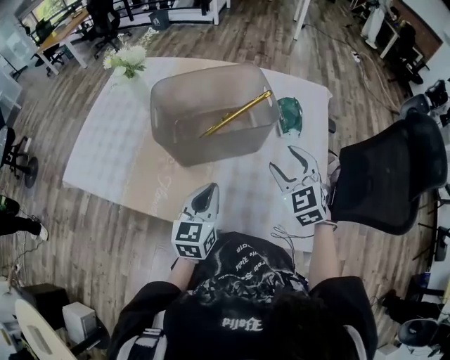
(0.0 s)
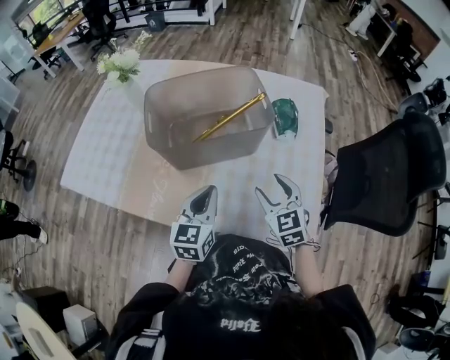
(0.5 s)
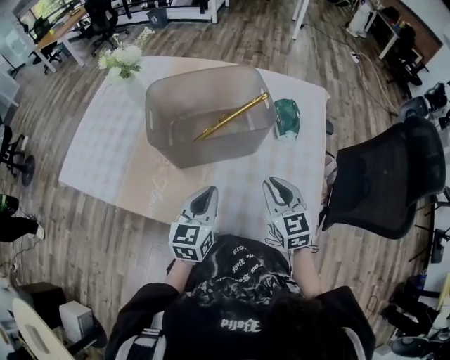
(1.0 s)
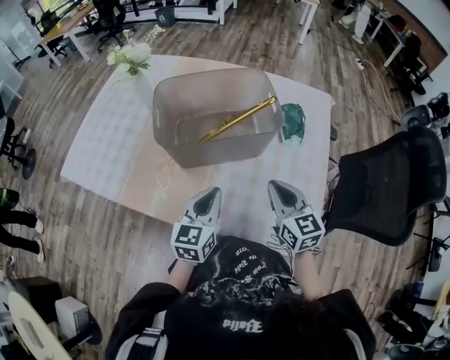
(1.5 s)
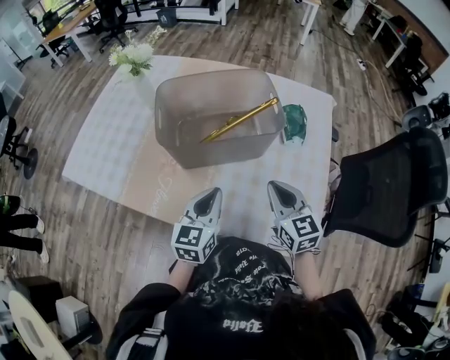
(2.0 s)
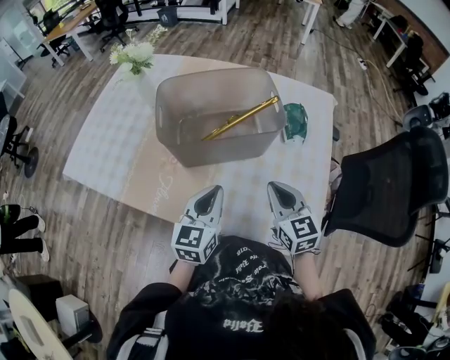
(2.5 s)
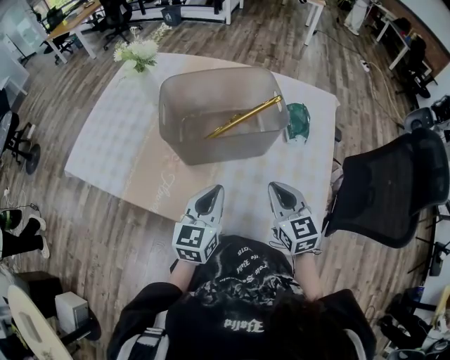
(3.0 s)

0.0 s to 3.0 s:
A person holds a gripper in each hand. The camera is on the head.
0.0 to 1.5 s: The right gripper shifts by some 5 cm, rotates roughly 30 degrees, and closes its fingers.
1.5 to 3.0 s: The grippers make only small movements.

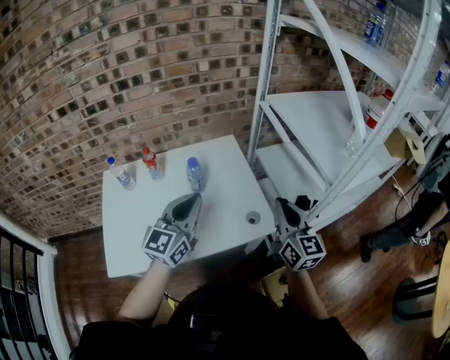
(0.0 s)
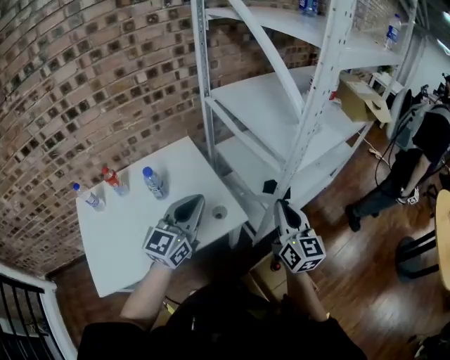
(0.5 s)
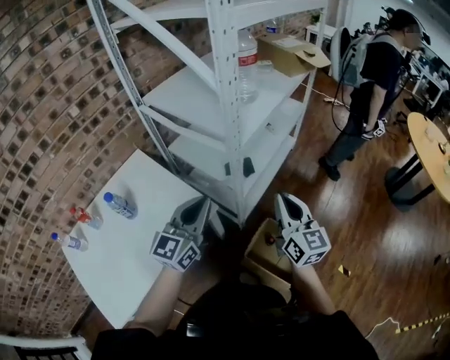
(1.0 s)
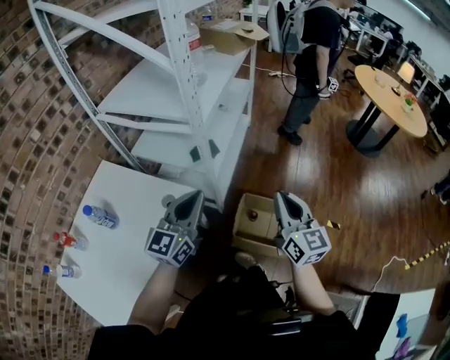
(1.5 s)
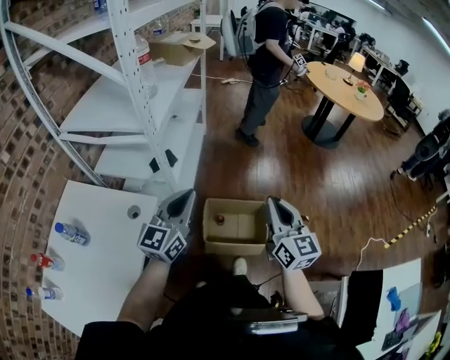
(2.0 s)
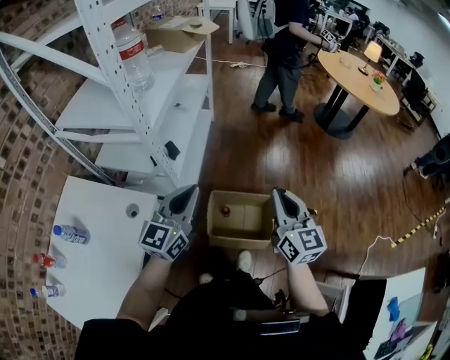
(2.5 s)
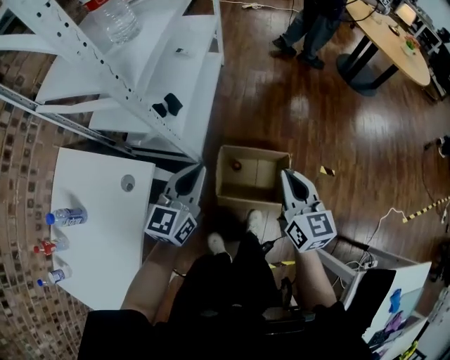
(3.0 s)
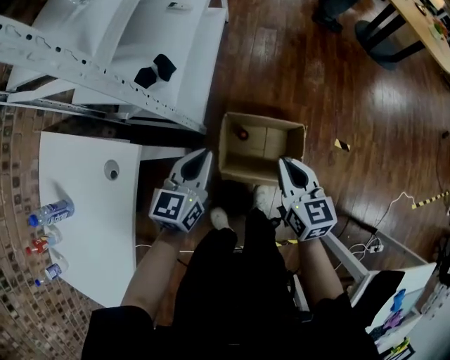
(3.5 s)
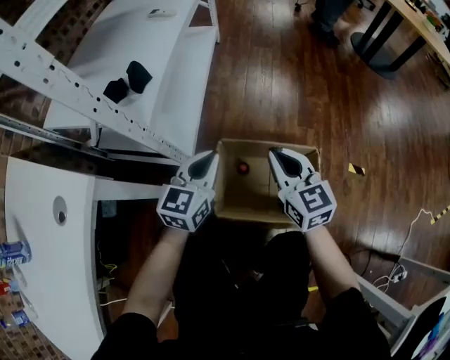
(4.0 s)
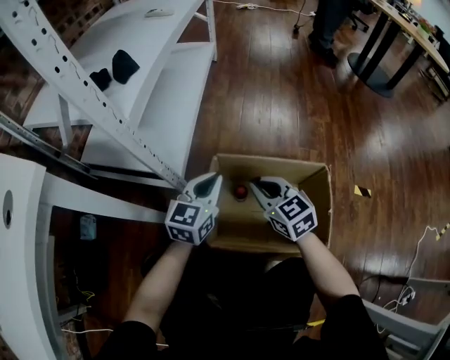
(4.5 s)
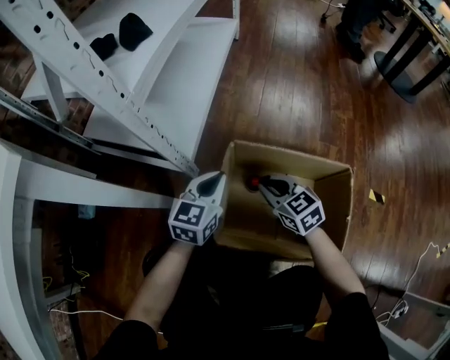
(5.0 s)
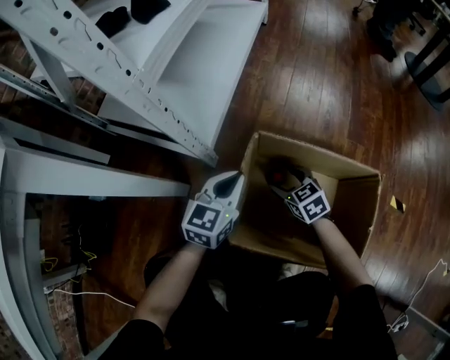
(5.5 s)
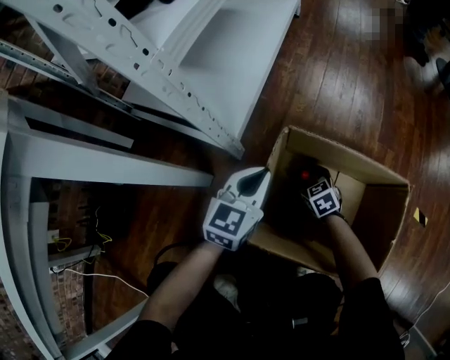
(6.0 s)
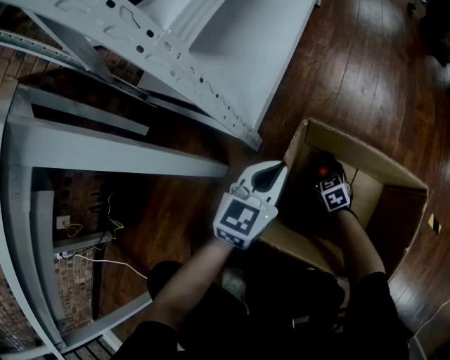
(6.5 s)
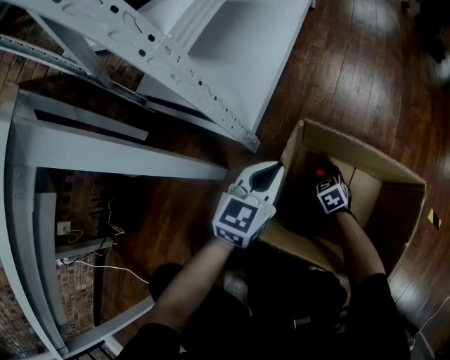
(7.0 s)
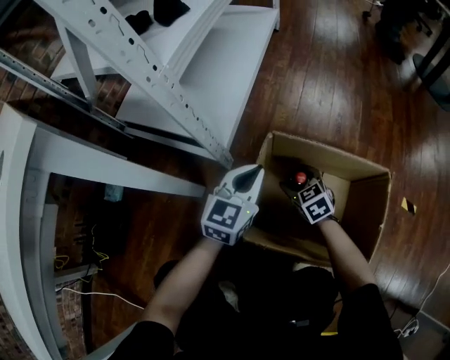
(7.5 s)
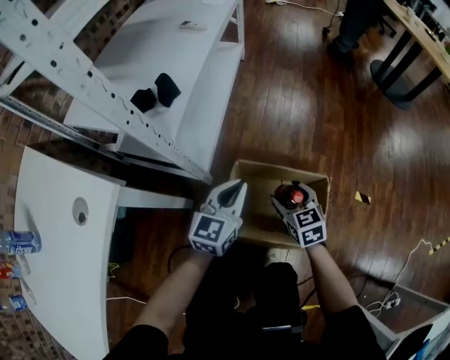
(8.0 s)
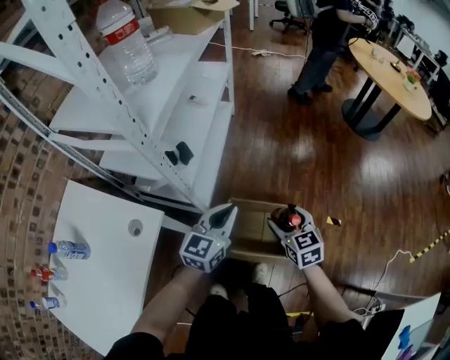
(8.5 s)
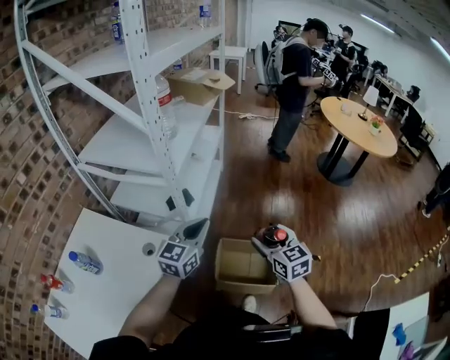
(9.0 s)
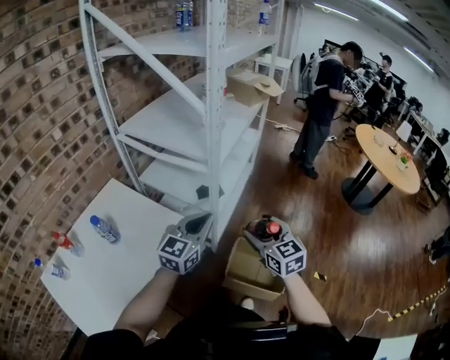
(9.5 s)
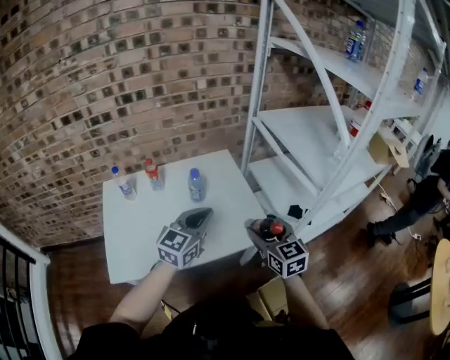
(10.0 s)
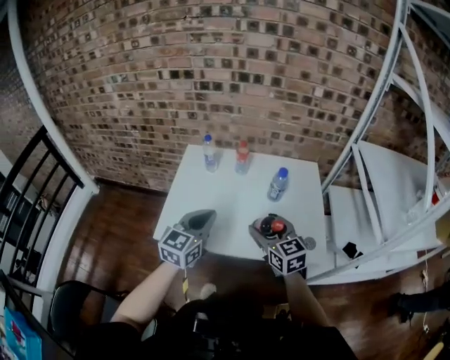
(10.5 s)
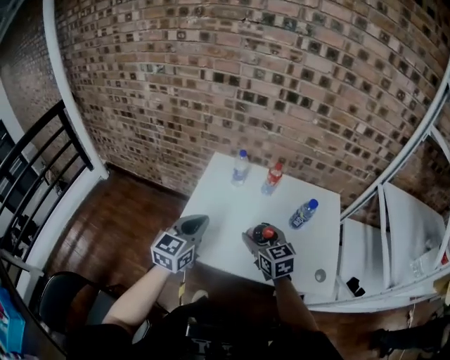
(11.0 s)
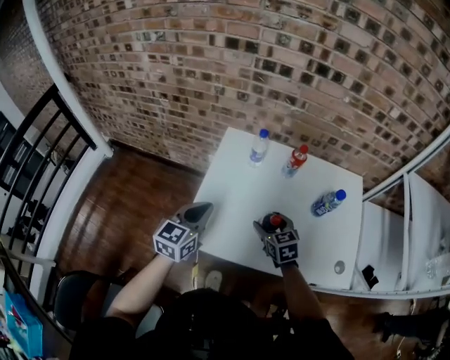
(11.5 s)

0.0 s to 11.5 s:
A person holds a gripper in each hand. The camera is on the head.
0.0 to 2.0 s: The left gripper changes place by about 35 cm, and turns by some 60 degrees. Meanwhile the right gripper ends up about 40 cm from where it was, and turns by some 60 degrees.
2.0 to 4.0 s: The two grippers go about 50 cm downward and forward. The left gripper rotates roughly 20 degrees, while the right gripper turns by roughly 20 degrees.
4.0 to 6.0 s: The right gripper travels downward by approximately 50 cm, tips its fingers downward by some 30 degrees, and opens. The left gripper moves downward, some 25 cm.
6.0 to 7.5 s: The right gripper heads upward, covering roughly 10 cm.
7.5 to 9.5 s: Both grippers travel together upward, roughly 80 cm. The right gripper rotates roughly 30 degrees.
9.5 to 11.5 s: Both grippers are carried about 70 cm. The left gripper swivels roughly 80 degrees, while the right gripper changes its angle by roughly 80 degrees.

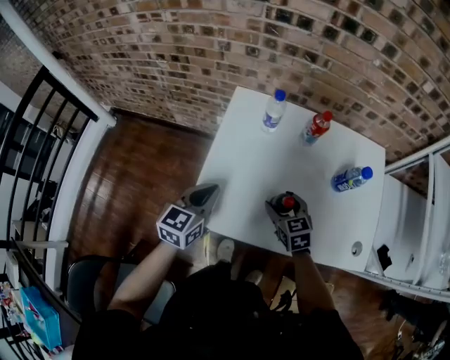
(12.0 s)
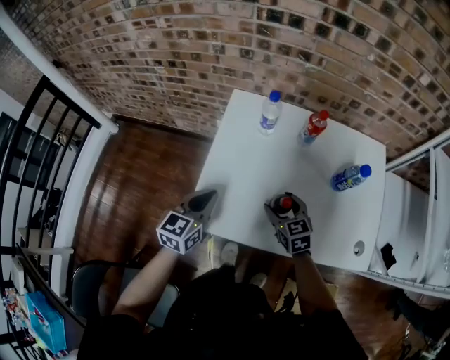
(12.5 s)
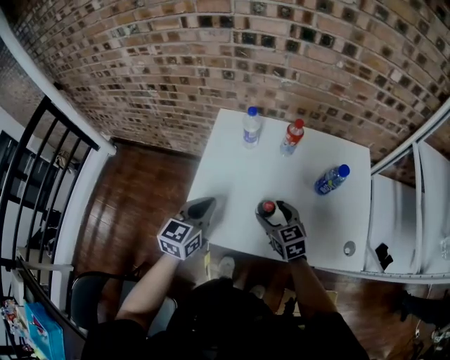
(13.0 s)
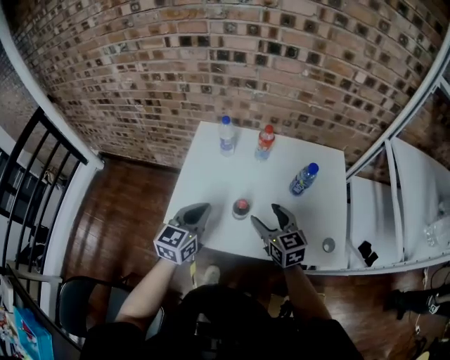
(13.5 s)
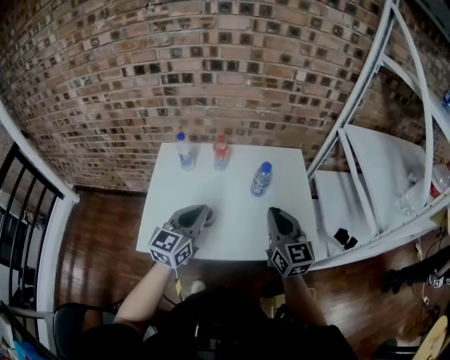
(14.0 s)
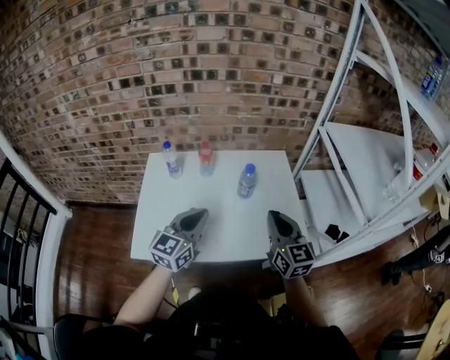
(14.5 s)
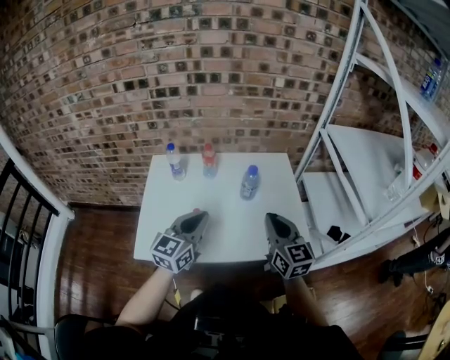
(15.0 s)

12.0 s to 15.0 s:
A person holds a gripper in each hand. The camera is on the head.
12.0 to 13.5 s: The left gripper heads to the right, upward and backward, covering some 15 cm. The right gripper goes roughly 15 cm upward, to the right and backward.
13.5 to 15.0 s: Both grippers travel together to the right and upward, approximately 20 cm. The right gripper swivels approximately 30 degrees, and closes its fingers.

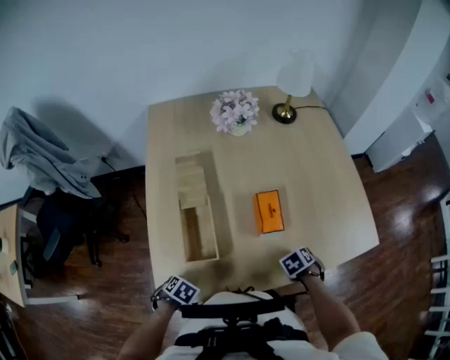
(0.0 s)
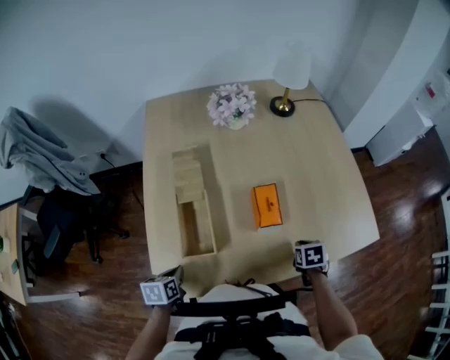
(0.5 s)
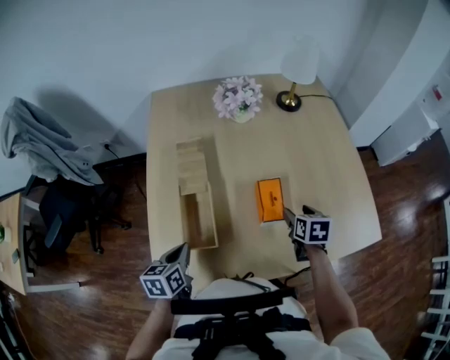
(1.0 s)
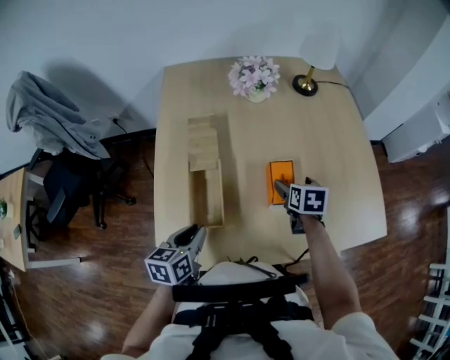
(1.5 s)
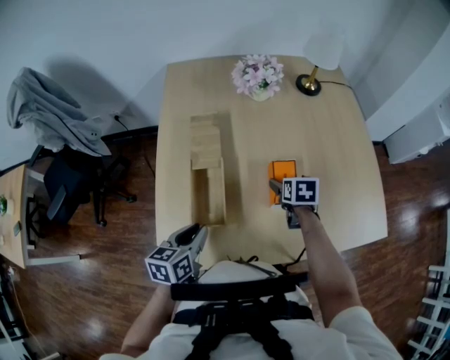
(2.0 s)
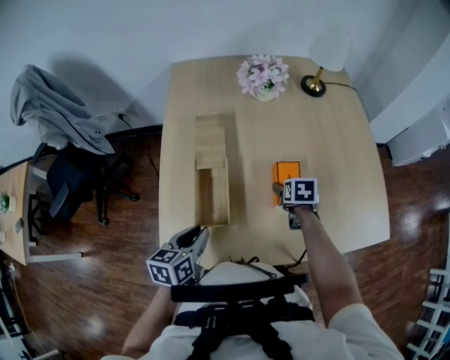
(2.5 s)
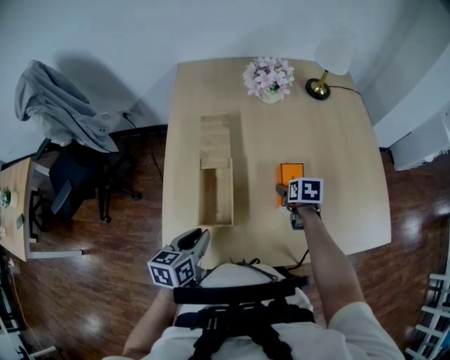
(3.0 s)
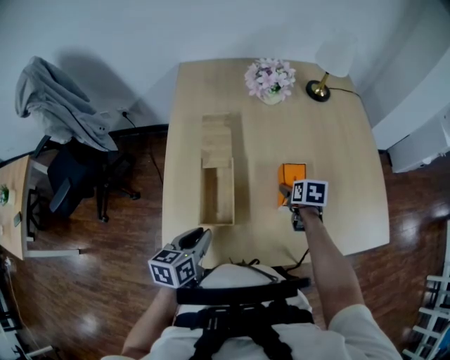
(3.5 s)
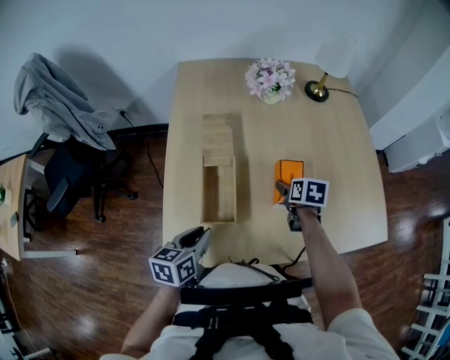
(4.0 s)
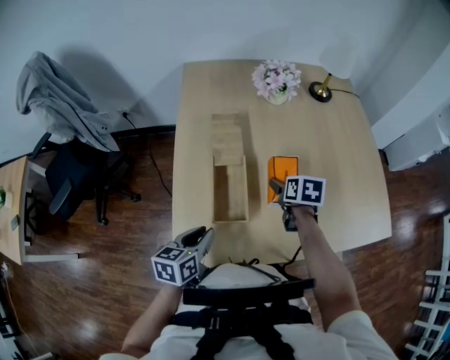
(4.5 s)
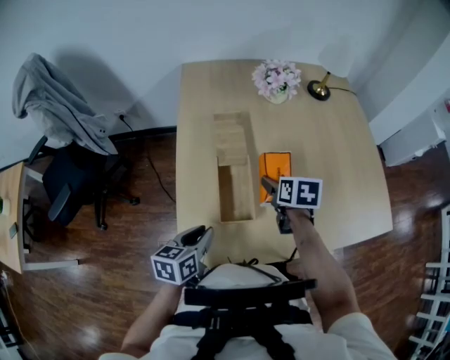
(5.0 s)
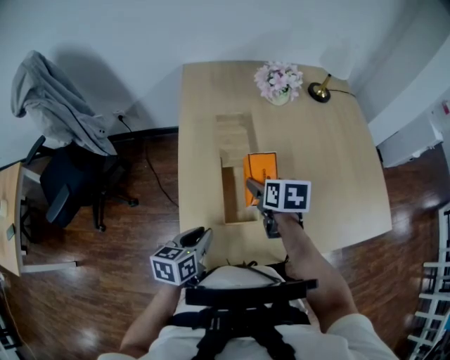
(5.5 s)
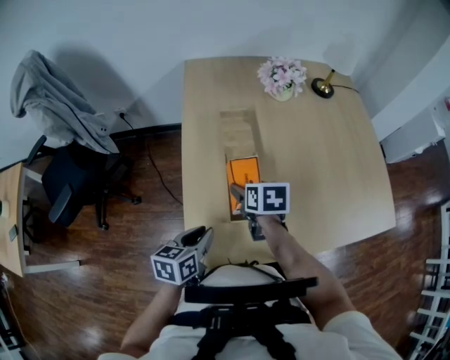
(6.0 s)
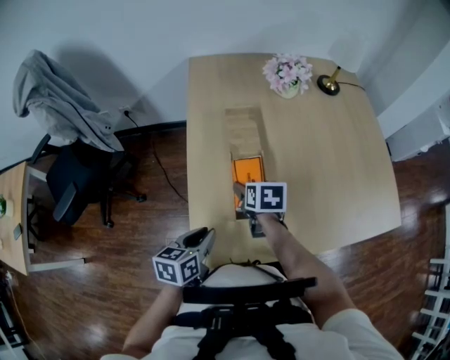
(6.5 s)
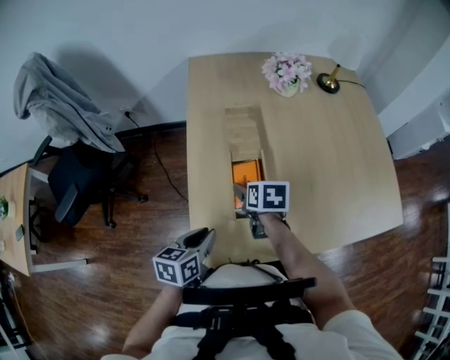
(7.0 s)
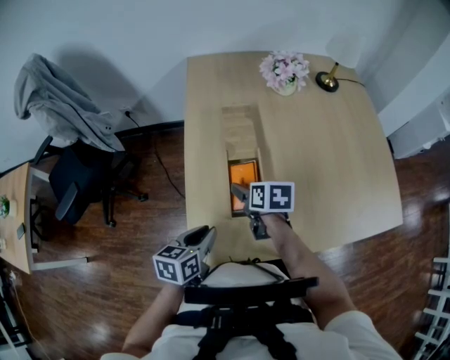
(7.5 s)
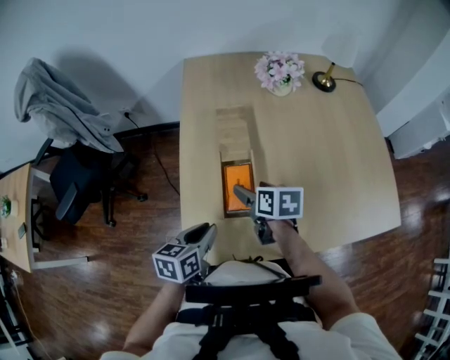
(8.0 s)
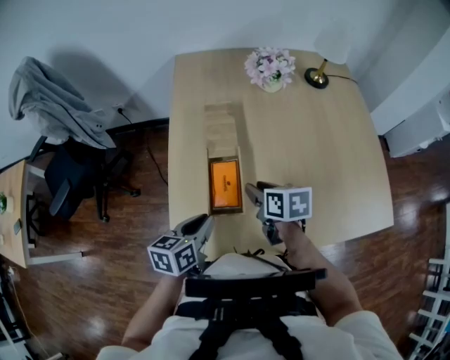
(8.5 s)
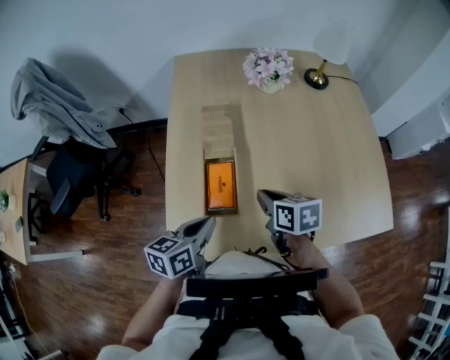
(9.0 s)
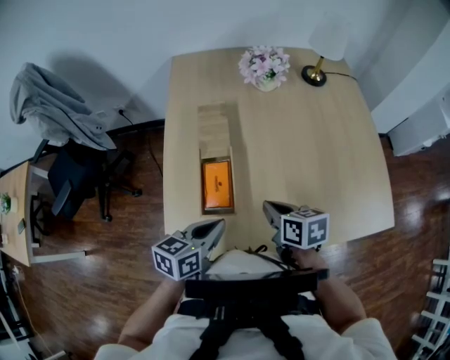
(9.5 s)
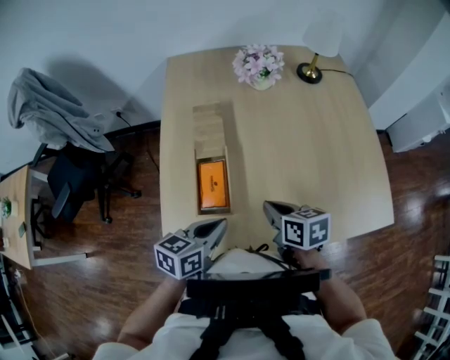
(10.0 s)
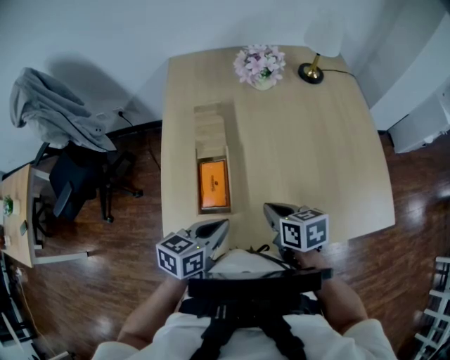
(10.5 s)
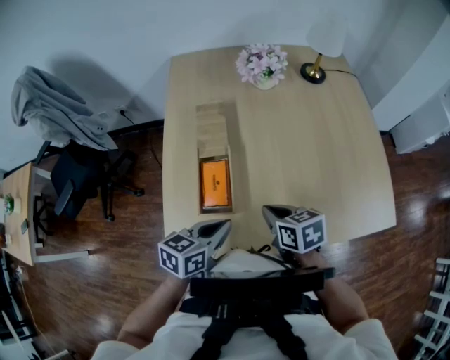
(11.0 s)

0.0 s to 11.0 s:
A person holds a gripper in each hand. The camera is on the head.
0.0 to 2.0 s: The left gripper heads upward, covering about 15 cm, angles its fingers upward, by roughly 50 degrees, and opens, while the right gripper changes place by about 20 cm, rotates about 40 degrees, and opens up.
2.0 to 3.5 s: The grippers stay close to where they were, moving slightly.
3.5 to 5.5 s: The left gripper shifts roughly 10 cm to the left, while the right gripper heads to the left and upward, covering approximately 20 cm.
5.5 to 7.5 s: The right gripper heads to the left and downward, covering roughly 10 cm.
7.5 to 9.0 s: The two grippers go roughly 10 cm to the right and upward. The right gripper closes up. Meanwhile the left gripper closes its fingers.
9.0 to 11.0 s: The right gripper shifts roughly 5 cm backward. Meanwhile the left gripper goes about 5 cm to the right.
